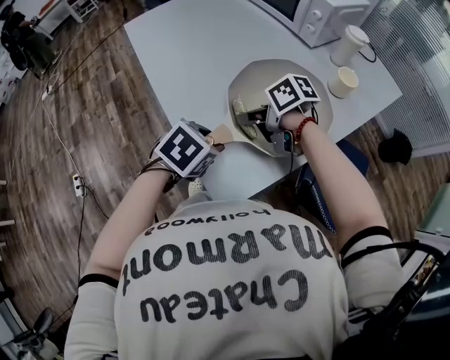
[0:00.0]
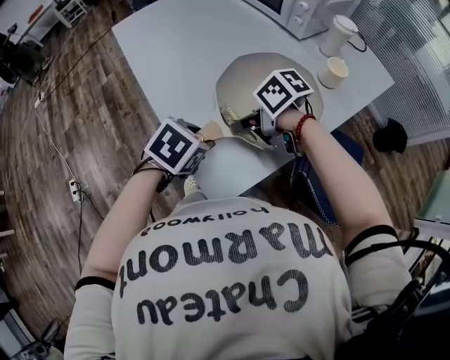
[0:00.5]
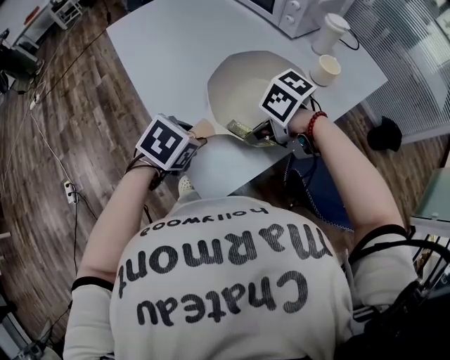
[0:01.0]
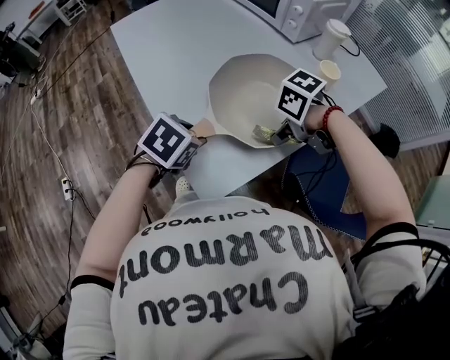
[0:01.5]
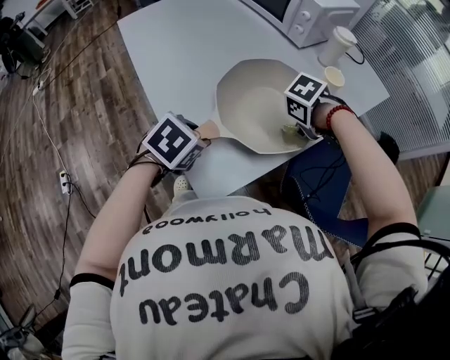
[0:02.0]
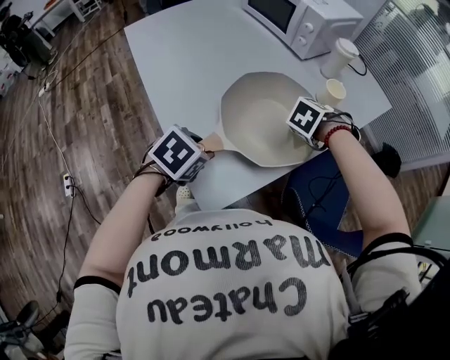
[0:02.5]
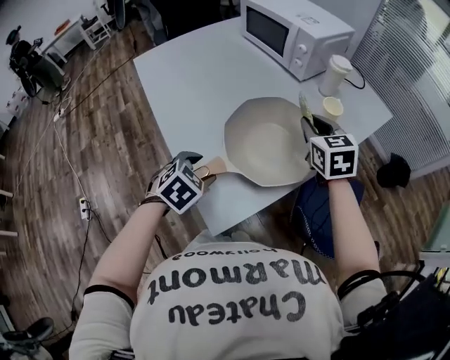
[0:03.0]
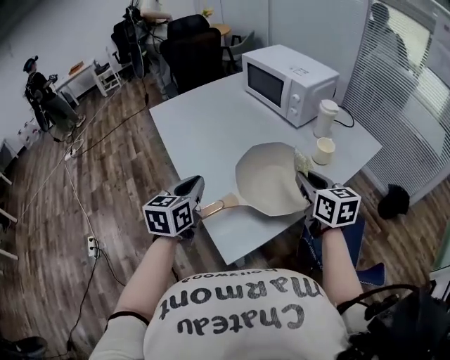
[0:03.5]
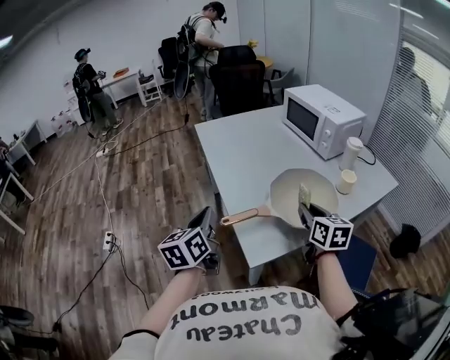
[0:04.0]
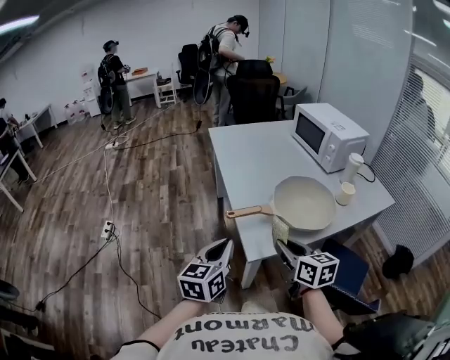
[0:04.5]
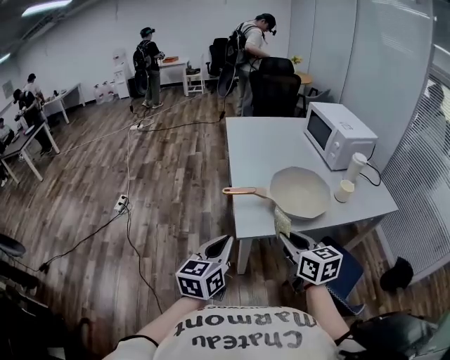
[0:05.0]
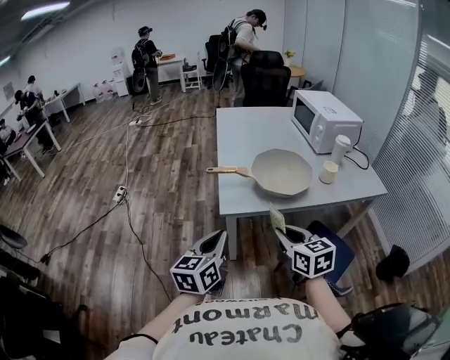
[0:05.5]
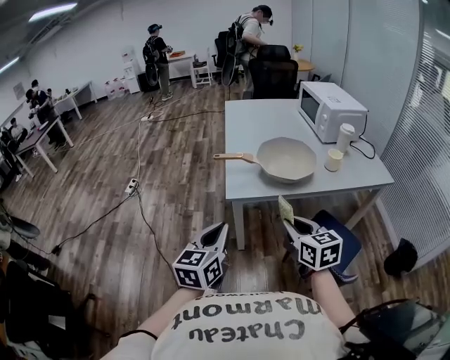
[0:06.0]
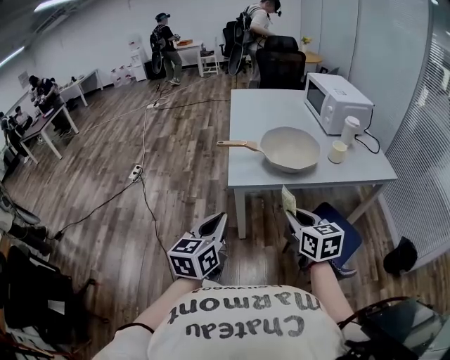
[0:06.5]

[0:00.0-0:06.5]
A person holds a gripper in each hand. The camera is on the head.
0:00.0 to 0:02.0: The right gripper shifts by about 20 cm, and angles its fingers downward, by some 40 degrees.
0:02.0 to 0:04.5: The left gripper shifts by roughly 30 cm, tips its fingers upward by roughly 50 degrees, and closes its fingers; the right gripper changes place by about 35 cm, and tips its fingers upward by some 60 degrees.
0:04.5 to 0:06.5: The two grippers go approximately 25 cm backward and to the right.

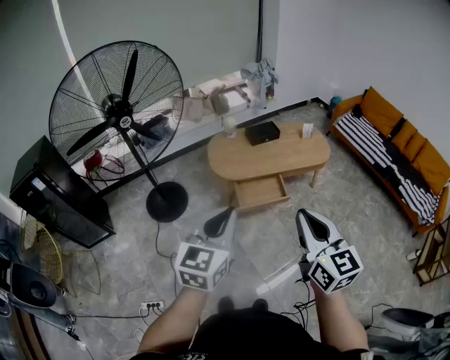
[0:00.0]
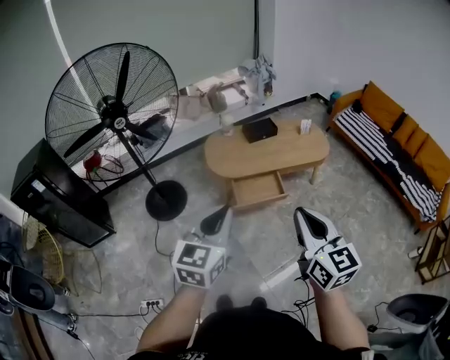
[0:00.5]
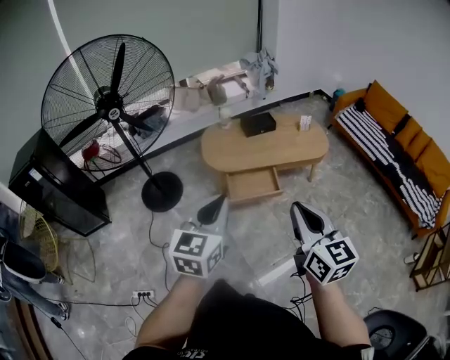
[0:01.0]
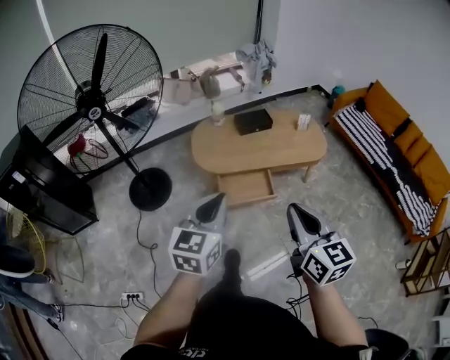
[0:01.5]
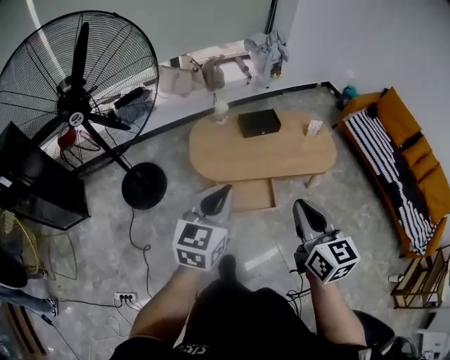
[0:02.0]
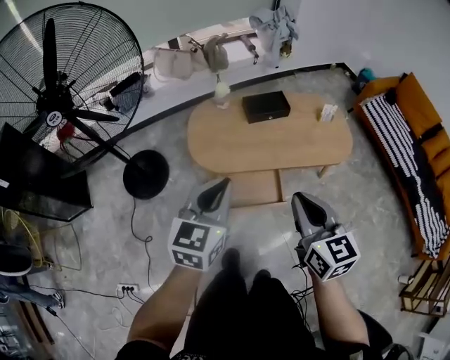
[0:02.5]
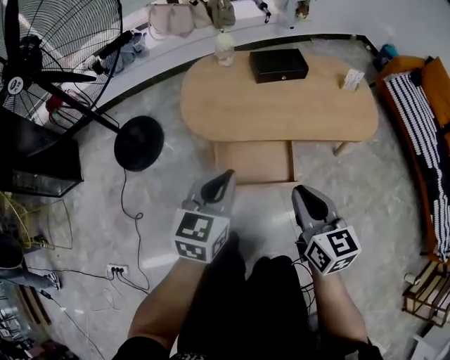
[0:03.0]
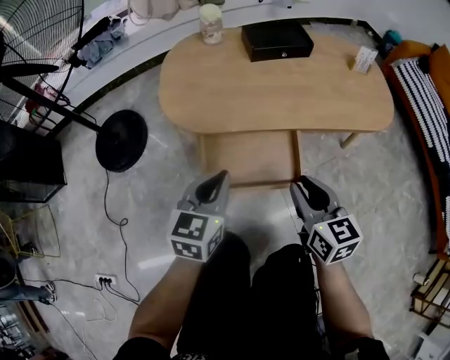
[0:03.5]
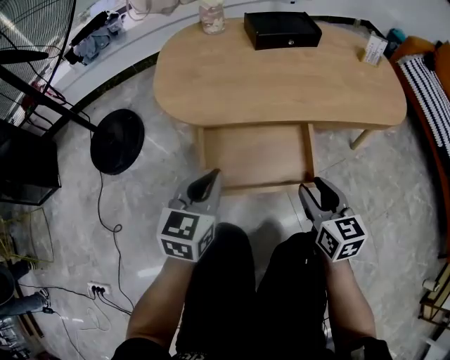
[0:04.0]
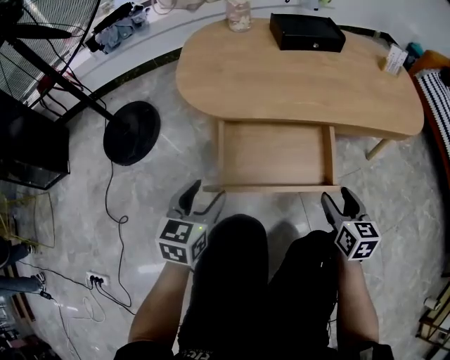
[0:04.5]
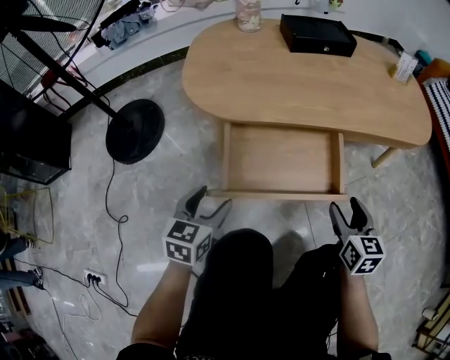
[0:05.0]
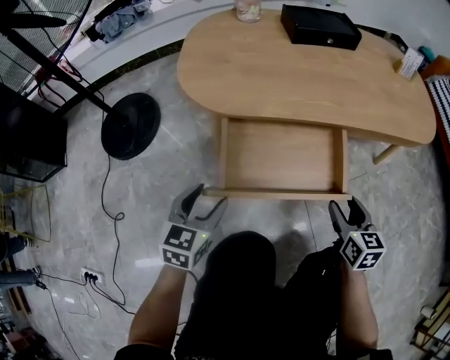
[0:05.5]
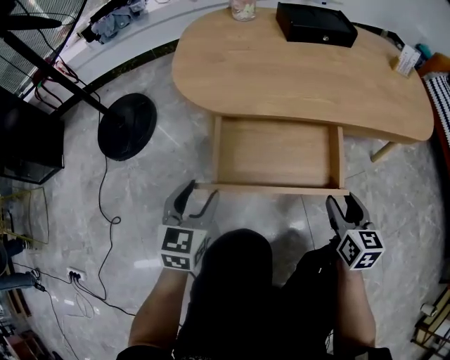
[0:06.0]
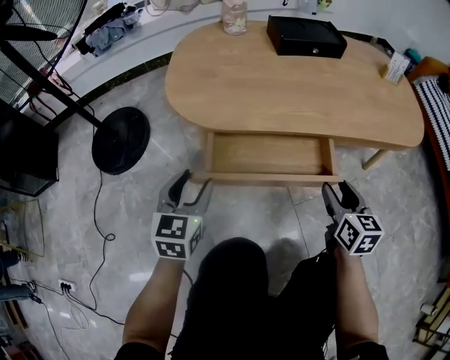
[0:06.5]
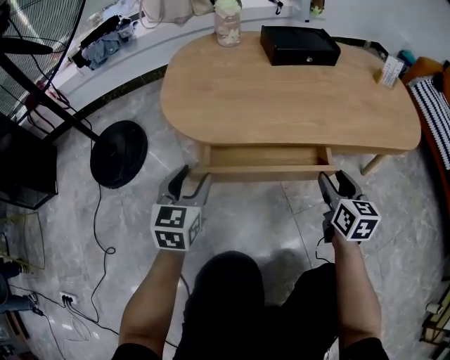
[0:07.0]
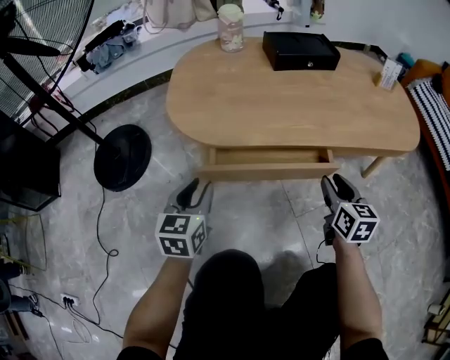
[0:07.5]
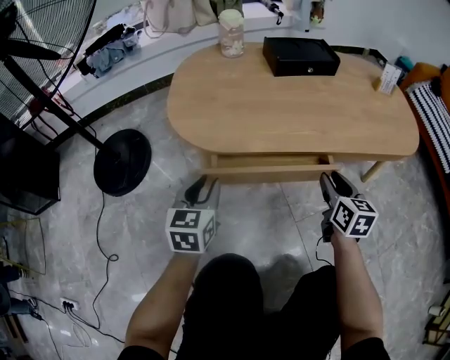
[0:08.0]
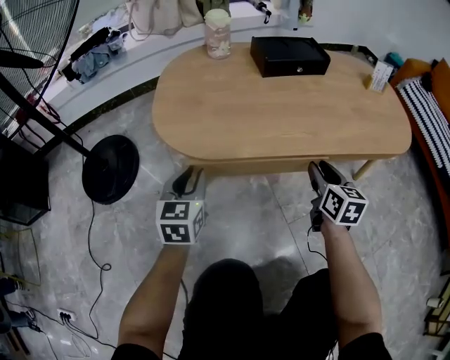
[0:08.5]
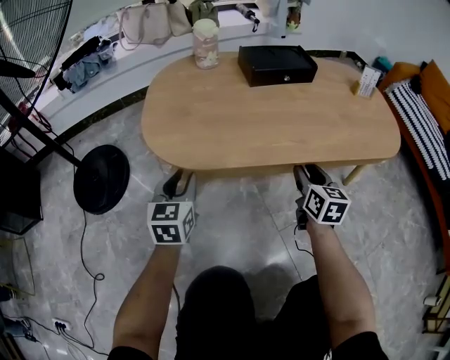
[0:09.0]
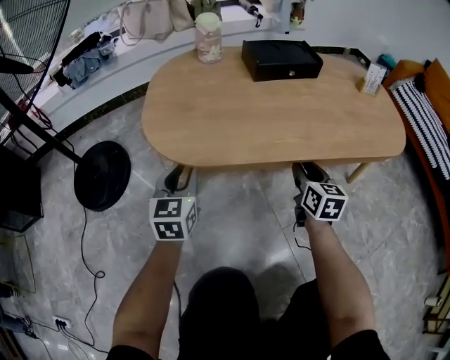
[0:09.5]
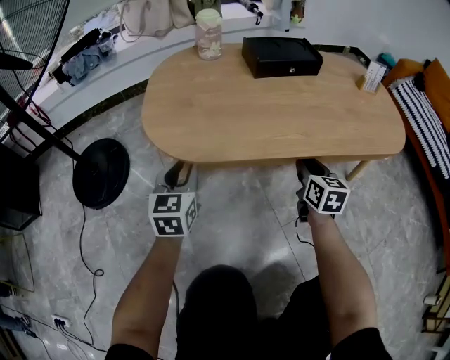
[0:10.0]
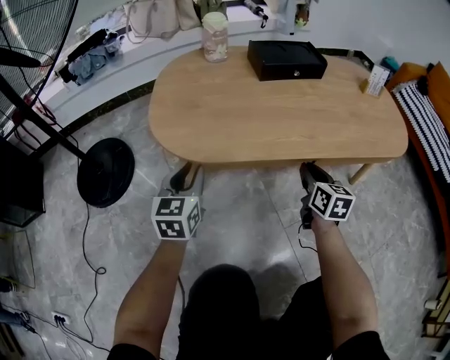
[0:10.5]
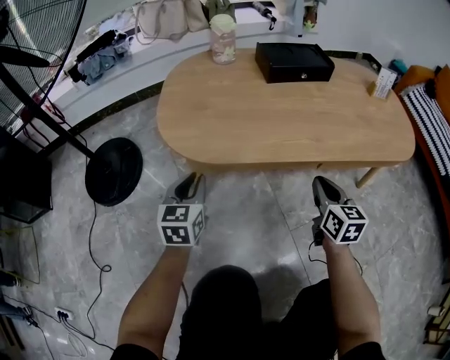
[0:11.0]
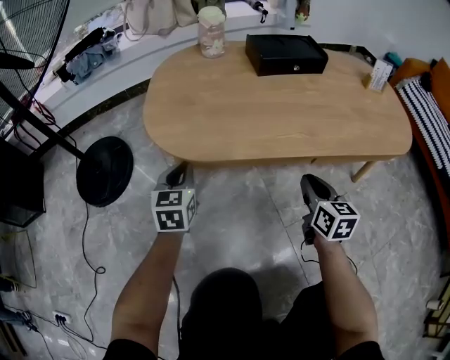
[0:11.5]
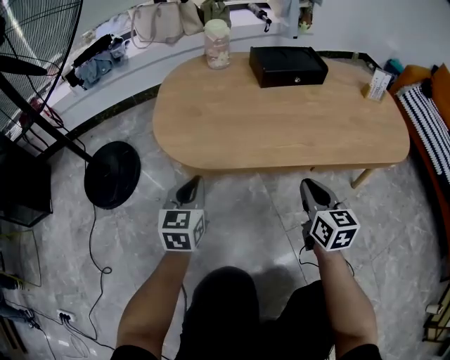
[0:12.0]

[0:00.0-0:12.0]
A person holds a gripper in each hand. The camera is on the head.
0:00.0 to 0:02.0: The grippers both shift forward by approximately 30 cm.
0:02.0 to 0:04.0: Both grippers travel together downward, approximately 60 cm. The right gripper opens.
0:04.0 to 0:06.0: The left gripper shifts about 15 cm downward and to the left, and opens, while the right gripper travels downward by about 10 cm.
0:06.0 to 0:08.0: The grippers both shift forward by roughly 10 cm. The left gripper closes.
0:08.0 to 0:10.0: The grippers both shift forward by some 10 cm.
0:10.0 to 0:12.0: The right gripper goes some 5 cm backward.

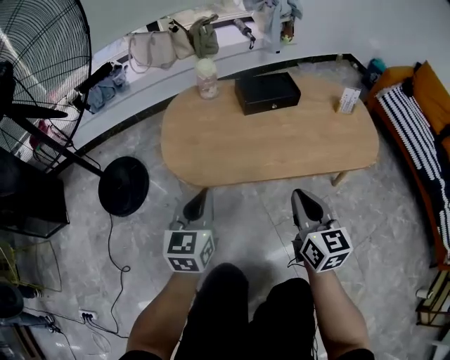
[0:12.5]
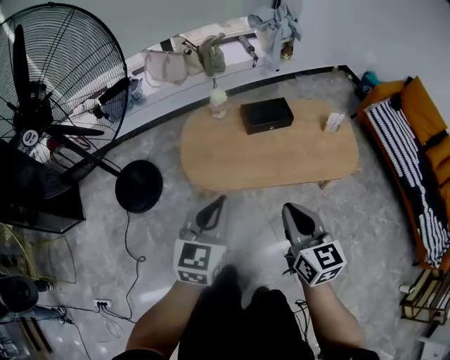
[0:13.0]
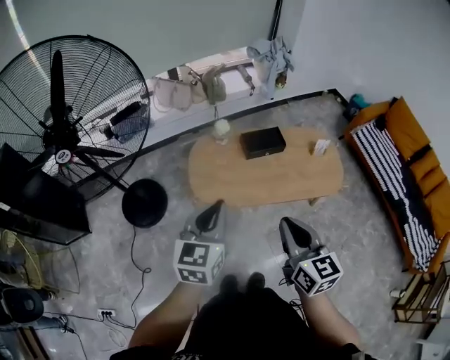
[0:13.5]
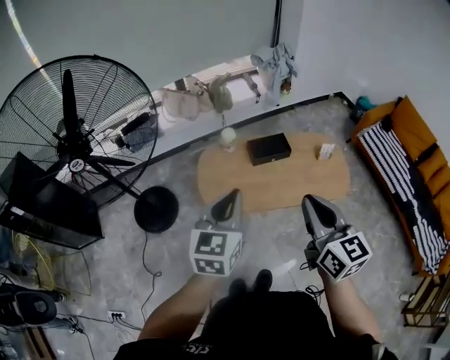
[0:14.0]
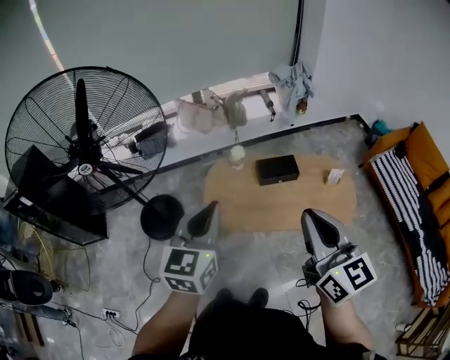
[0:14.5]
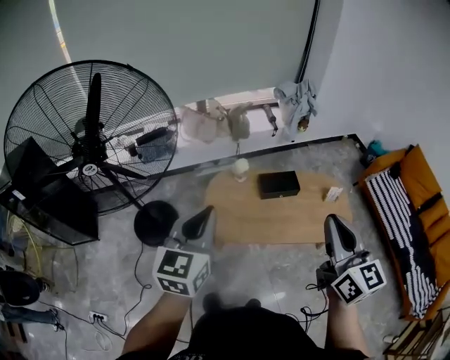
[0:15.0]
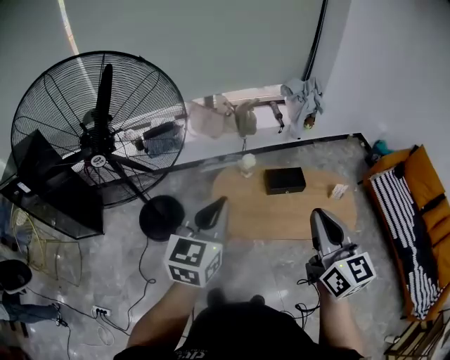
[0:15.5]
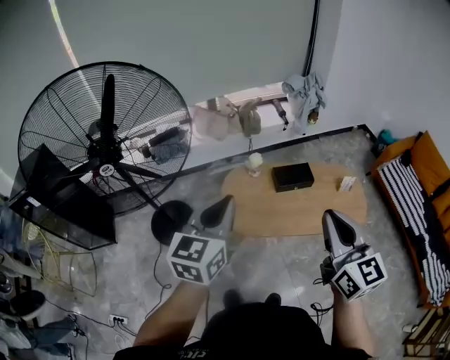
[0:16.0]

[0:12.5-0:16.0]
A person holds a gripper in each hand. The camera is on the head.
0:12.5 to 0:14.5: The grippers both shift upward by roughly 50 cm. The right gripper turns by approximately 20 degrees.
0:14.5 to 0:16.0: The two grippers go some 5 cm to the left.

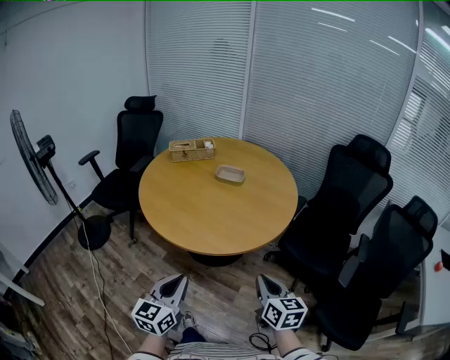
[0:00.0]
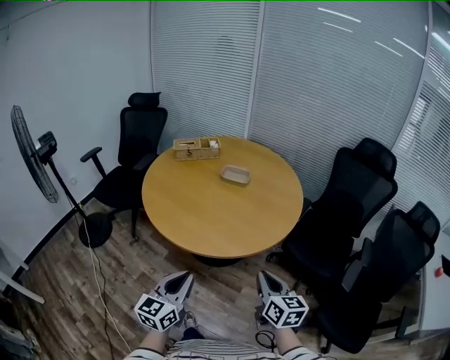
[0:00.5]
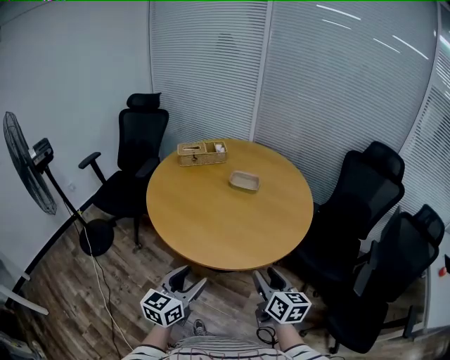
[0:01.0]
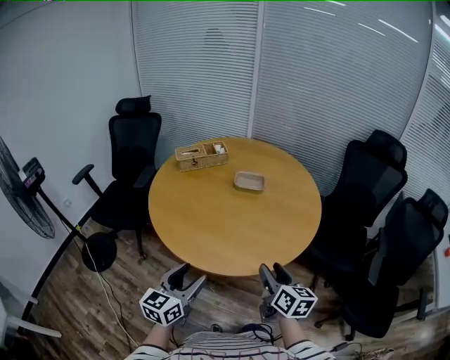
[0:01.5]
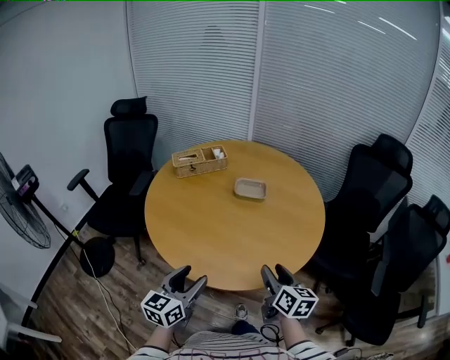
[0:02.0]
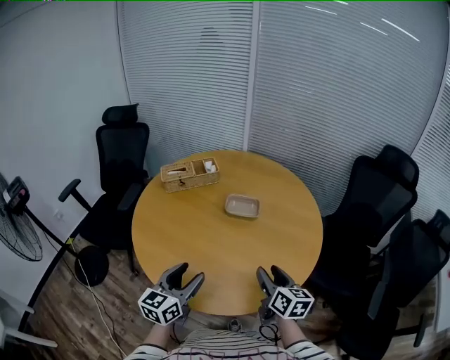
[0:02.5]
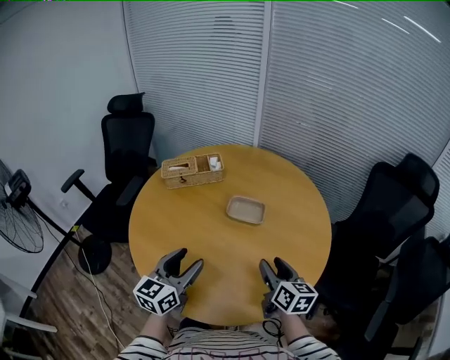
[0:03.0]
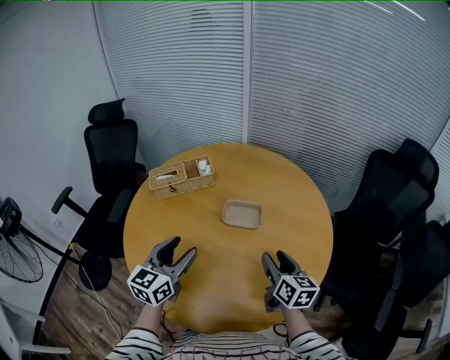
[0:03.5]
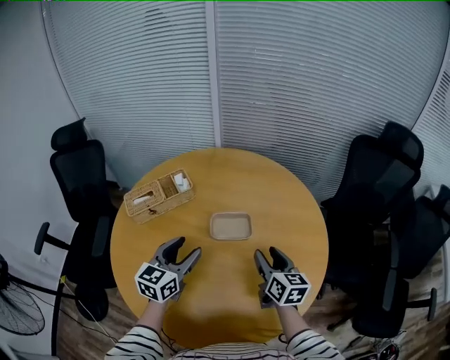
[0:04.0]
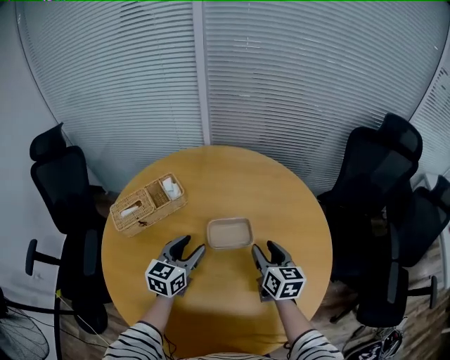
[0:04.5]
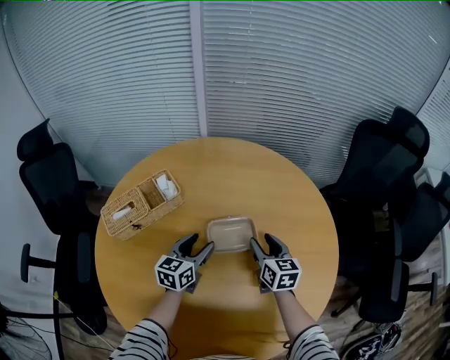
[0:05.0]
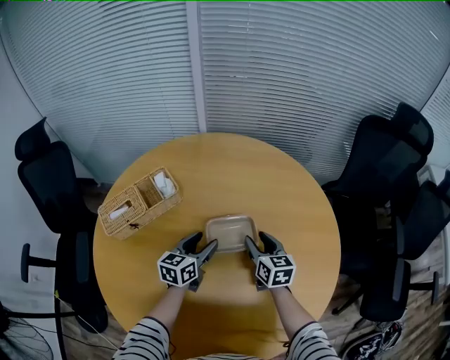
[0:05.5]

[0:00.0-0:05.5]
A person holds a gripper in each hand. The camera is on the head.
0:00.0 to 0:02.0: Both grippers move forward and to the left, roughly 30 cm. The left gripper opens up; the right gripper opens.
0:02.0 to 0:03.5: Both grippers travel together forward, roughly 30 cm.
0:03.5 to 0:05.5: The left gripper travels forward and downward by some 35 cm, and changes its angle by approximately 30 degrees; the right gripper goes some 25 cm forward, downward and to the left.
